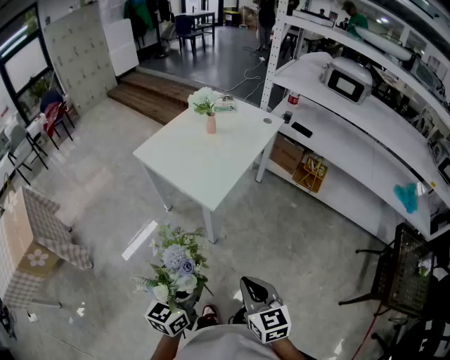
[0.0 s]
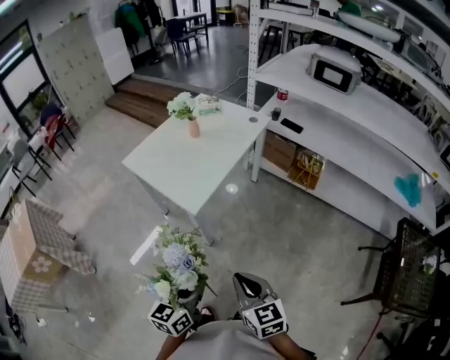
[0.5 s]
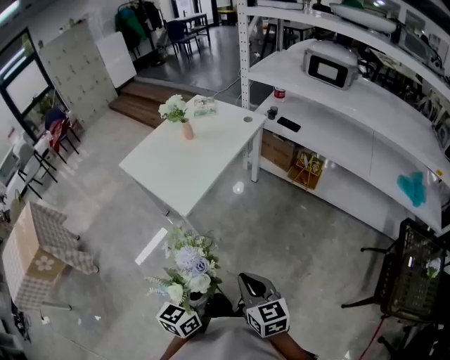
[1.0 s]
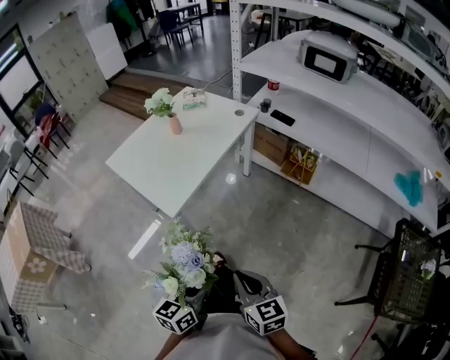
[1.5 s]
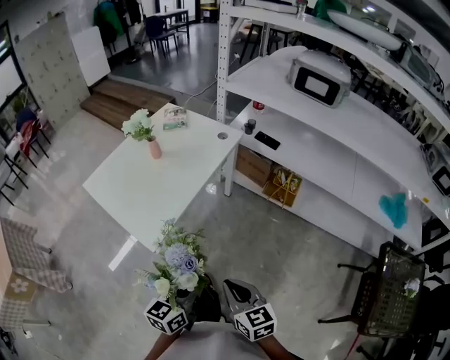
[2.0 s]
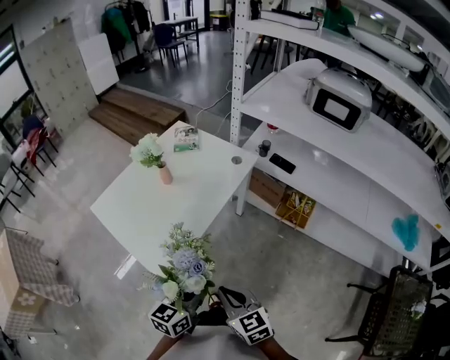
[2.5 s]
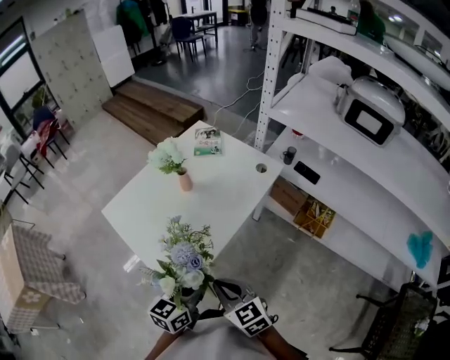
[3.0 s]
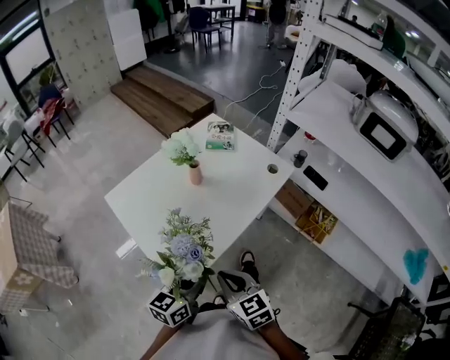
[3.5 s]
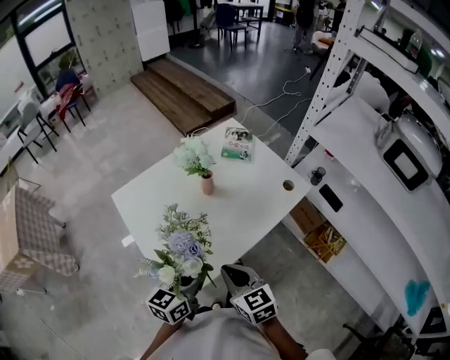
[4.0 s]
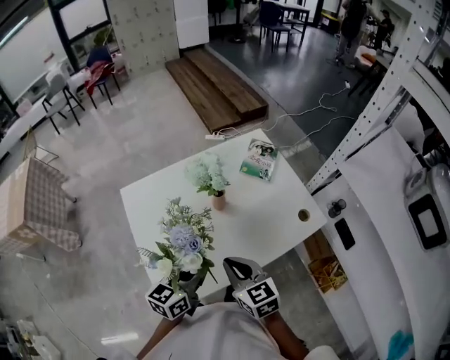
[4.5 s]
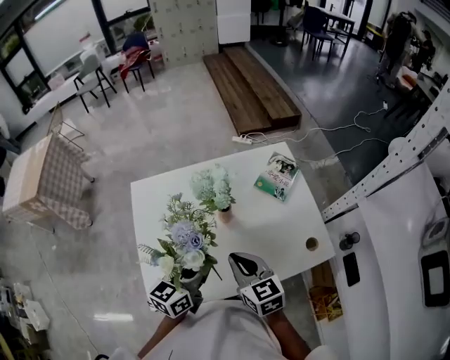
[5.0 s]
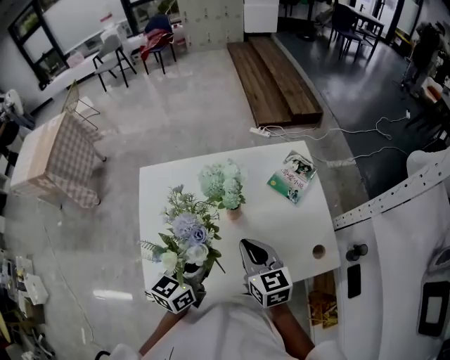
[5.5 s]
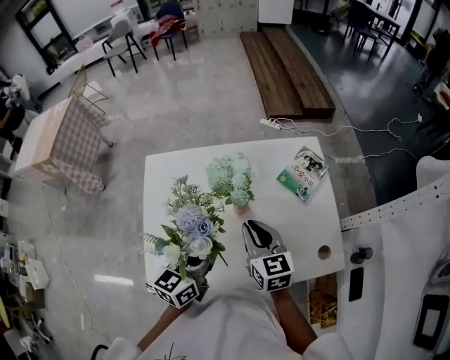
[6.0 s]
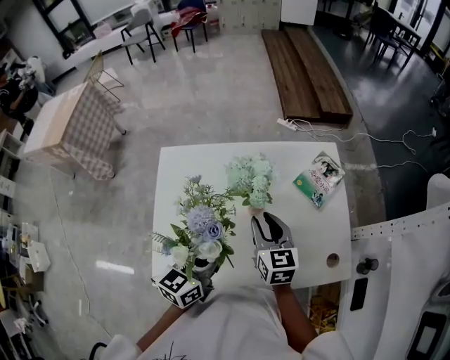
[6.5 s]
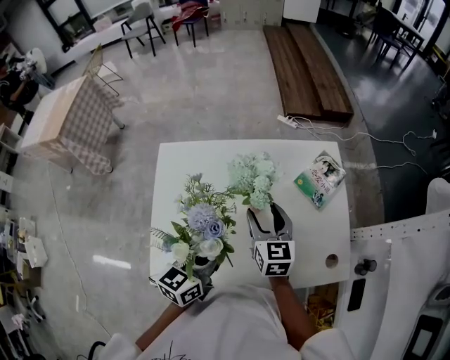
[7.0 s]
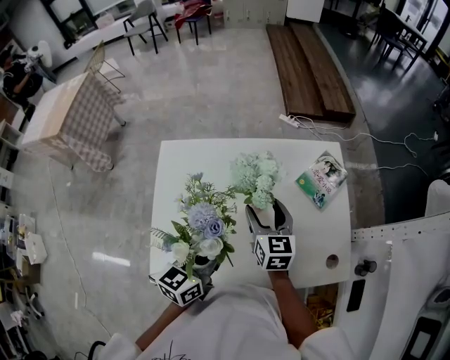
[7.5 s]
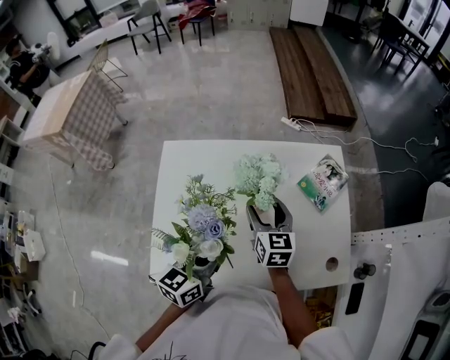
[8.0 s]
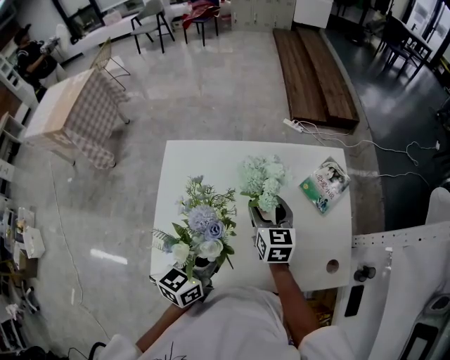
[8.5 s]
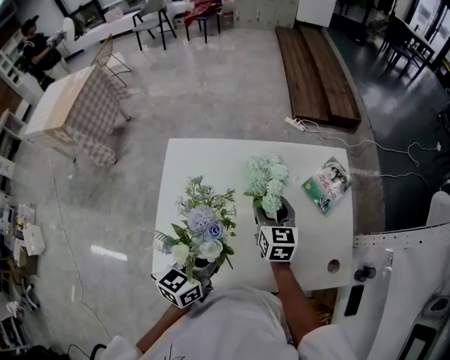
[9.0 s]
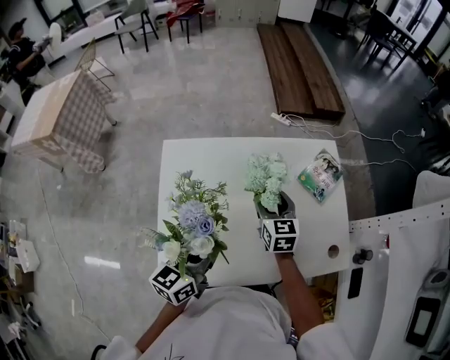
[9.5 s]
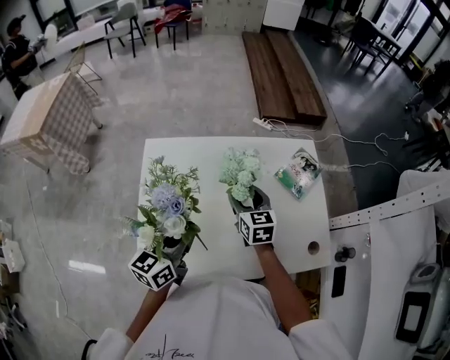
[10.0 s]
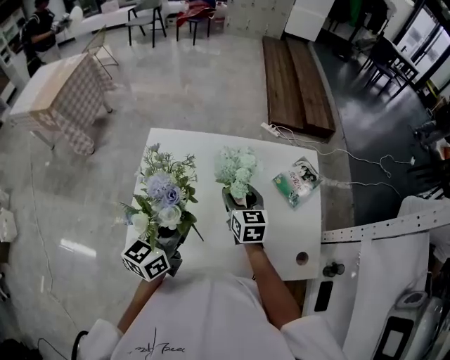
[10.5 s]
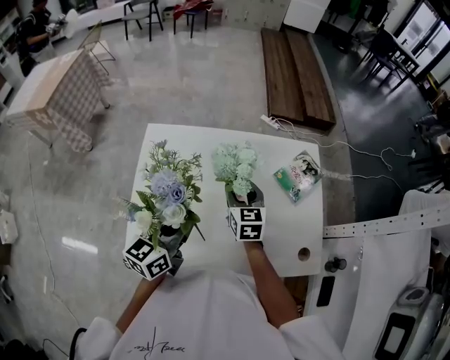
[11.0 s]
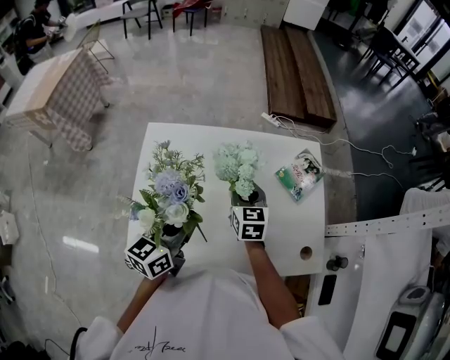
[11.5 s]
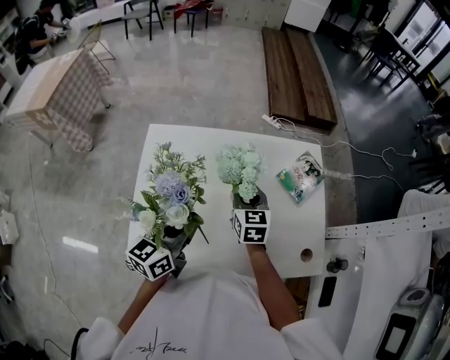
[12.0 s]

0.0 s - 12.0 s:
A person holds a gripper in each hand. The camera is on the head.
0.0 s - 2.0 s: The right gripper shifts some 30 cm forward and to the right. The left gripper is displaced to the right and forward by approximately 35 cm.
2.0 s - 4.0 s: Both grippers travel together forward, about 35 cm. The right gripper changes its angle by some 30 degrees.
4.0 s - 6.0 s: The left gripper moves approximately 20 cm, and swivels approximately 30 degrees. The right gripper changes place by approximately 30 cm, and changes its angle by about 20 degrees.
6.0 s - 8.0 s: The right gripper moves forward, about 10 cm, and opens.
8.0 s - 10.0 s: The left gripper travels to the left by about 5 cm.
10.0 s - 12.0 s: The right gripper closes up.

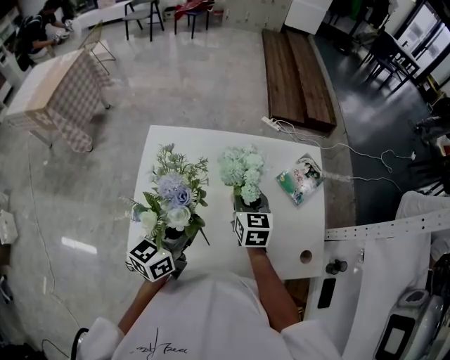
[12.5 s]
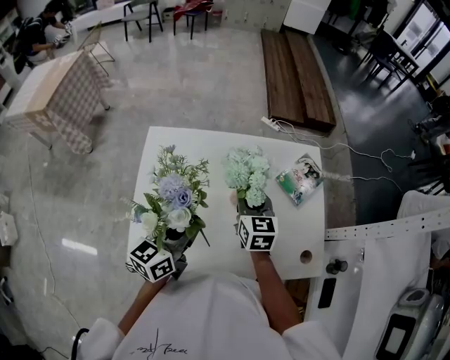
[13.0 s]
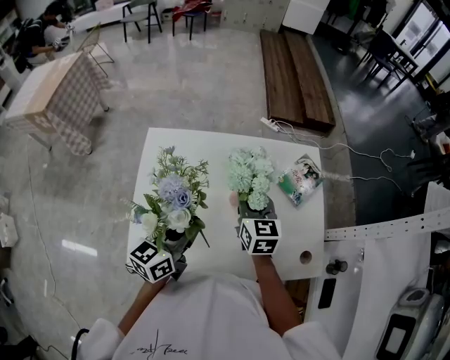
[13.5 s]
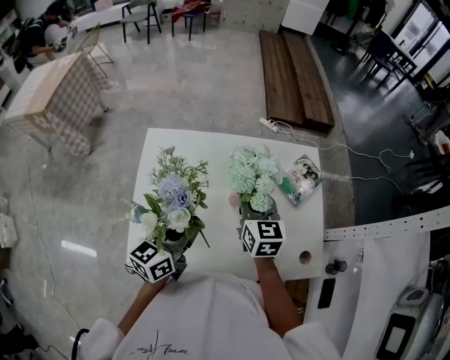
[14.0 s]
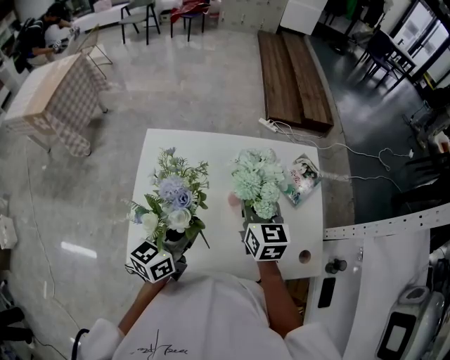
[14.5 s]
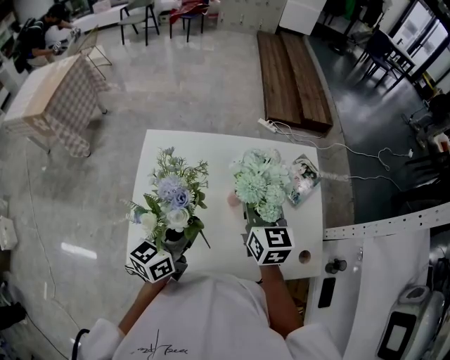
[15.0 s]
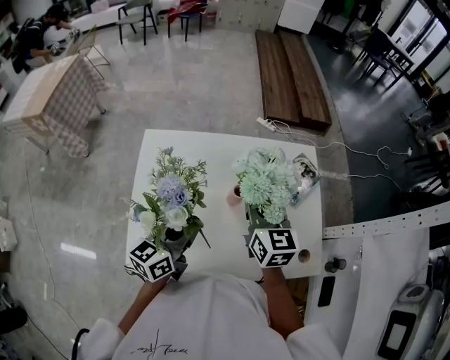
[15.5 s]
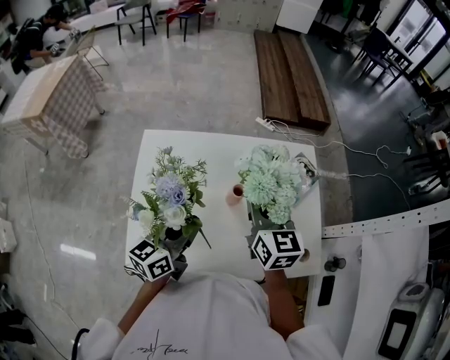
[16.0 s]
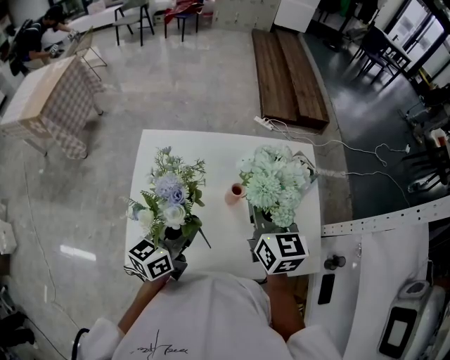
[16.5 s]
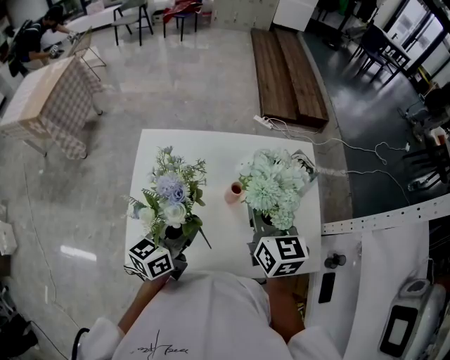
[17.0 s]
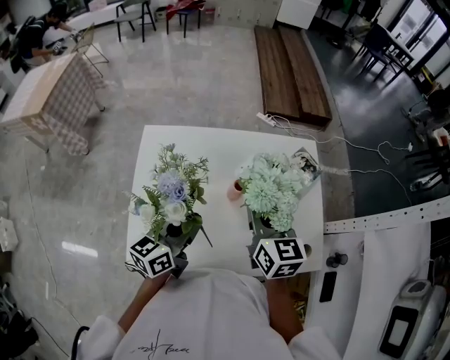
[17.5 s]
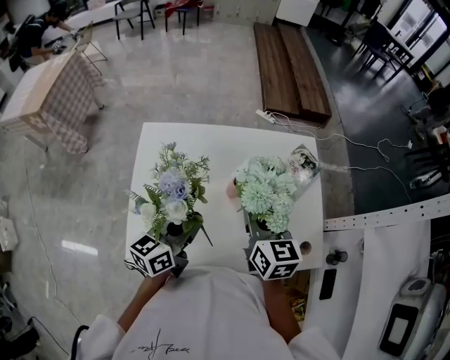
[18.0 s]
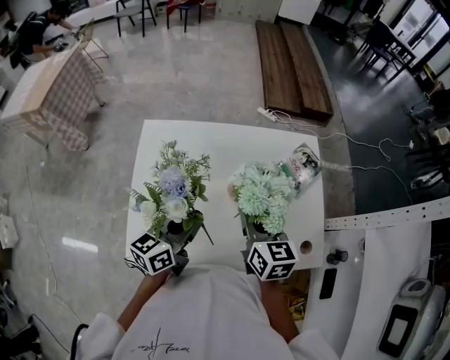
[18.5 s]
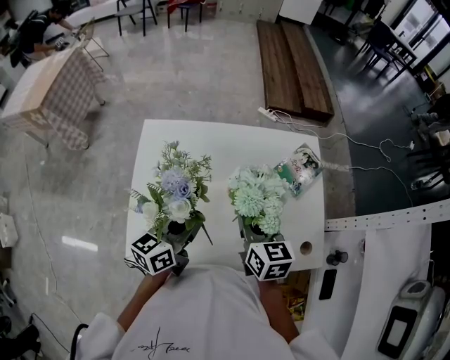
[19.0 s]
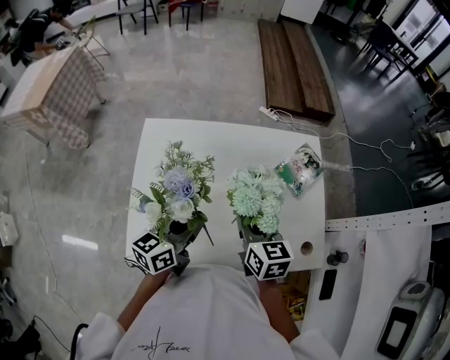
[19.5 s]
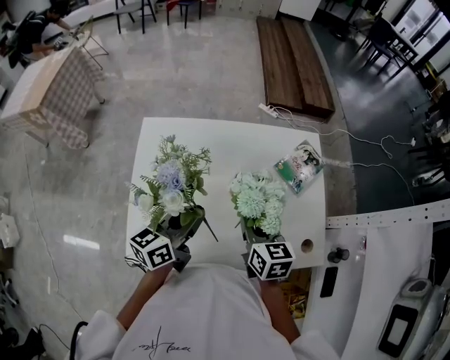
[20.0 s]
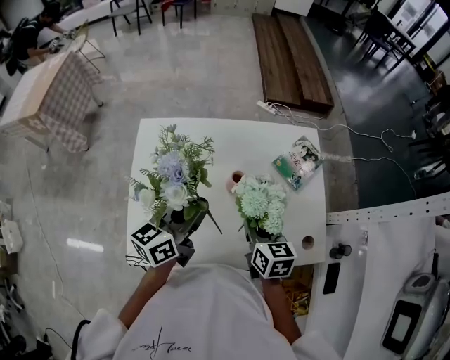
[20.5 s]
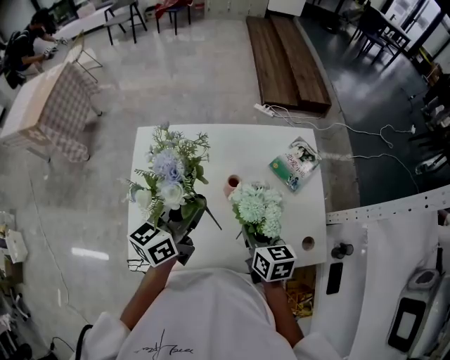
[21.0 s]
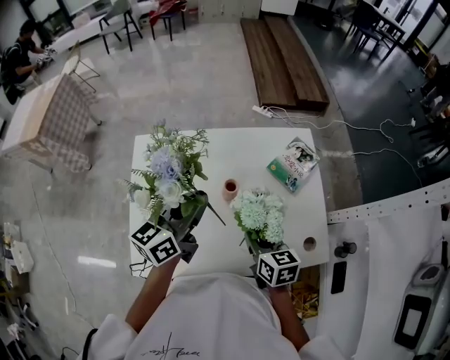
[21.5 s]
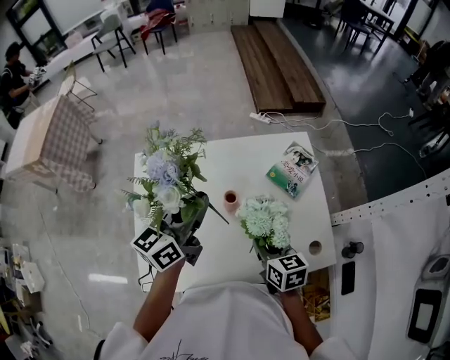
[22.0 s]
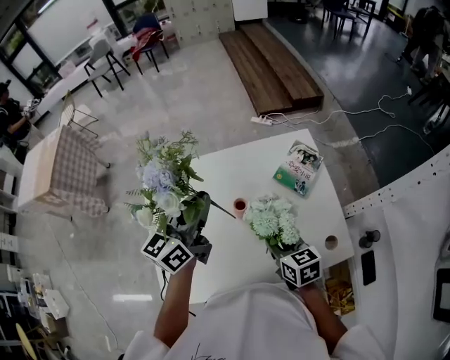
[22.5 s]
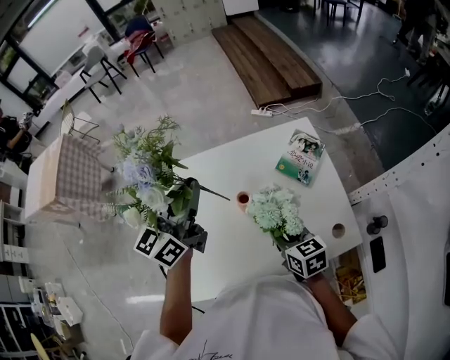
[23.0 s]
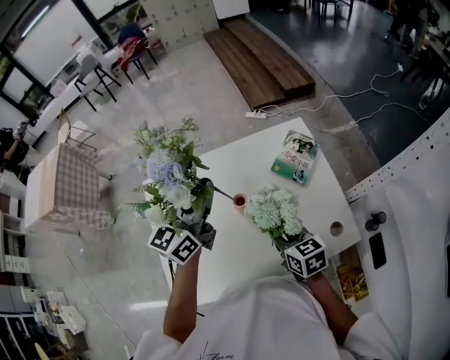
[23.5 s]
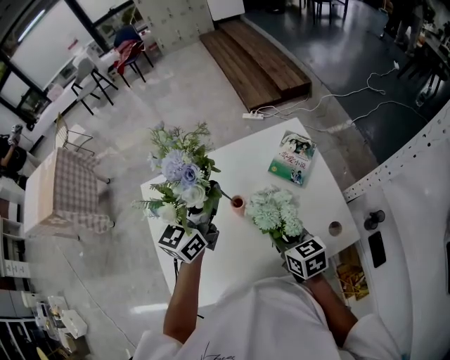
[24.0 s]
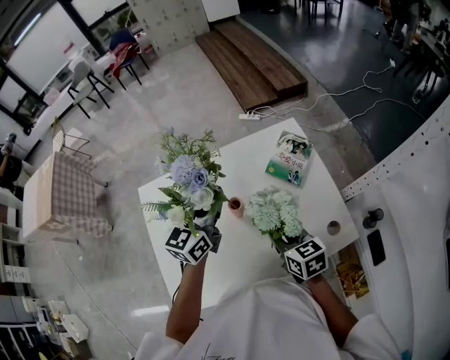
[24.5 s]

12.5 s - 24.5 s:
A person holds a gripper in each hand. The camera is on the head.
12.5 s - 14.5 s: The right gripper goes some 5 cm upward.
14.5 s - 16.5 s: The right gripper is displaced upward by about 5 cm.
16.5 s - 18.5 s: The right gripper moves downward, roughly 5 cm.
18.5 s - 20.5 s: The right gripper goes roughly 10 cm downward.
20.5 s - 22.5 s: The left gripper moves forward and upward, roughly 10 cm.
22.5 s - 24.5 s: The left gripper heads to the right, covering about 5 cm.

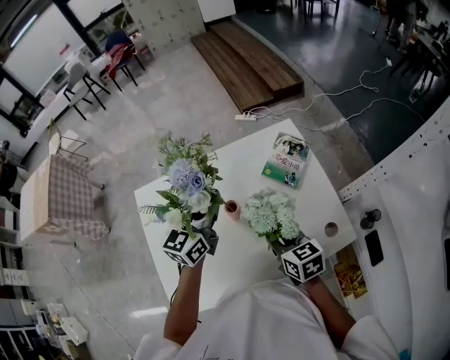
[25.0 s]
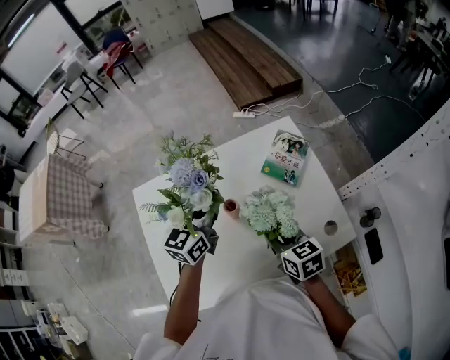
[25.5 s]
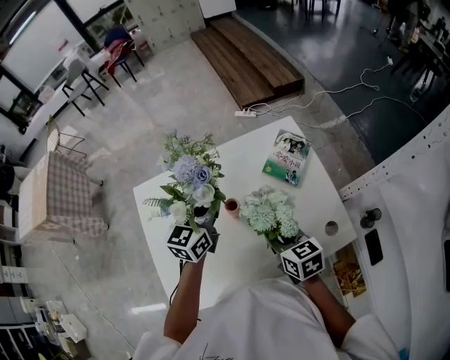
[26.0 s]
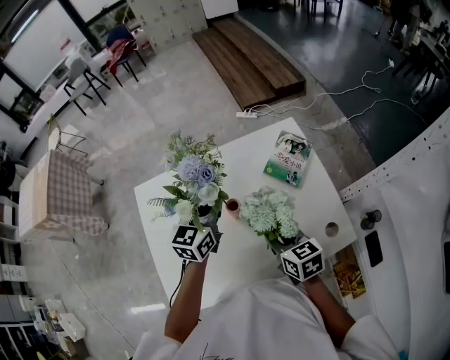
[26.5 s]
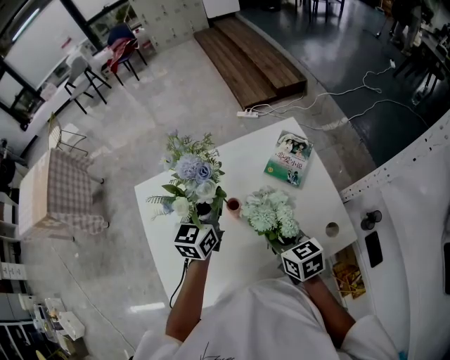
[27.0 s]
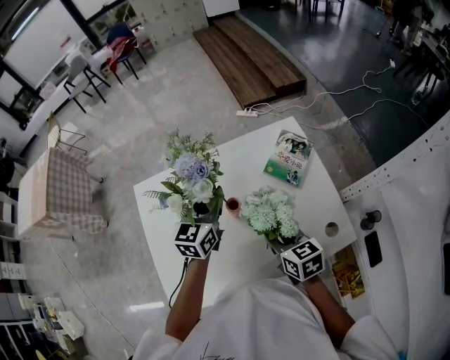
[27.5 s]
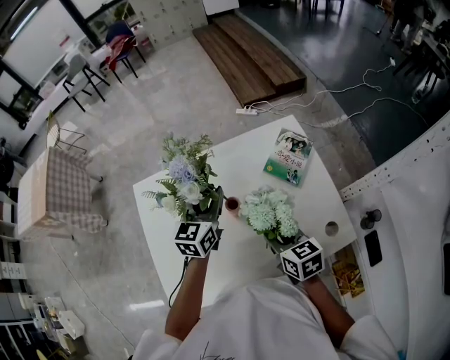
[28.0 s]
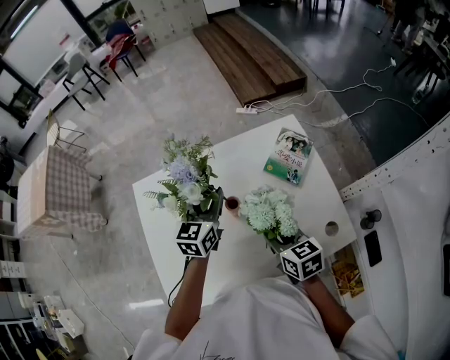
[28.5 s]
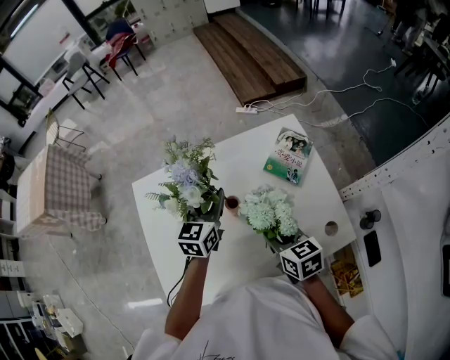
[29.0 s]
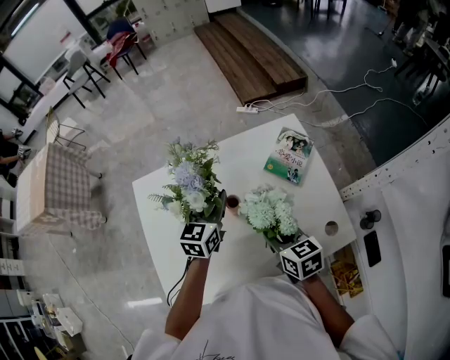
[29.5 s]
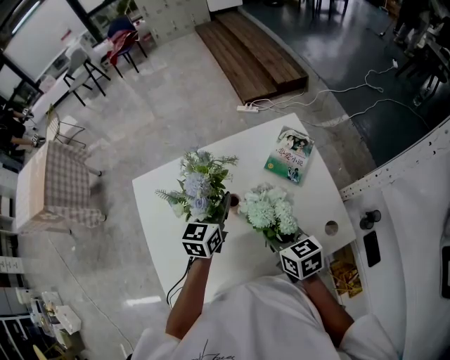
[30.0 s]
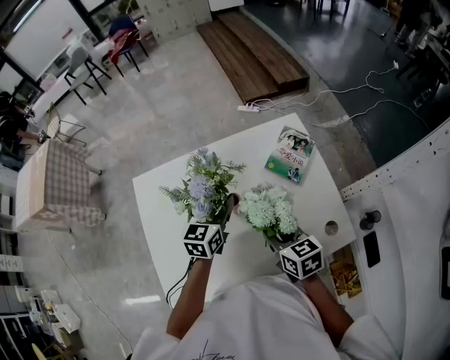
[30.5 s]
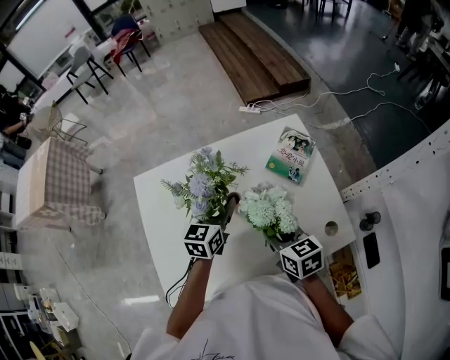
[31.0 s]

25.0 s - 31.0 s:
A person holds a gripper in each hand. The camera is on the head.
25.0 s - 27.0 s: The grippers make only small movements.
27.0 s - 29.0 s: The grippers move only a little.
29.0 s - 31.0 s: The left gripper opens up.
